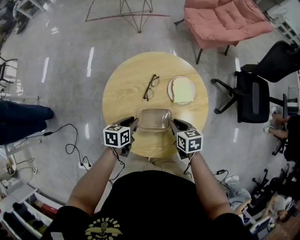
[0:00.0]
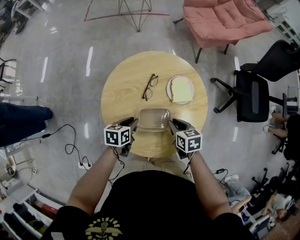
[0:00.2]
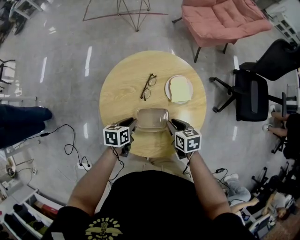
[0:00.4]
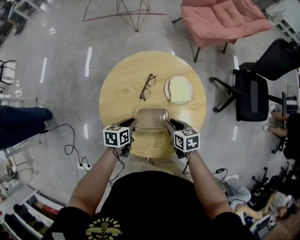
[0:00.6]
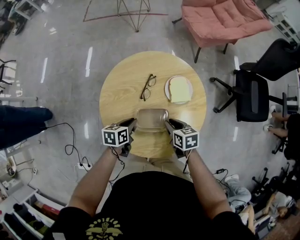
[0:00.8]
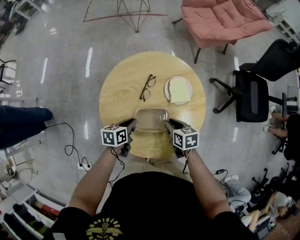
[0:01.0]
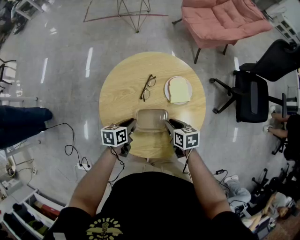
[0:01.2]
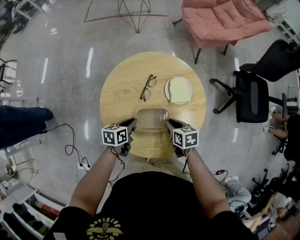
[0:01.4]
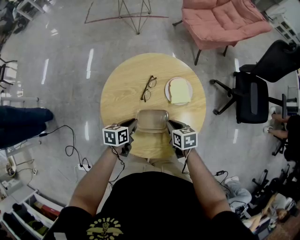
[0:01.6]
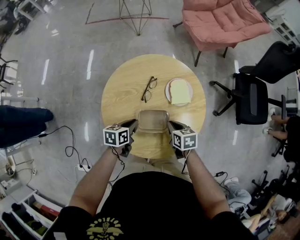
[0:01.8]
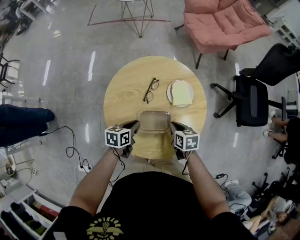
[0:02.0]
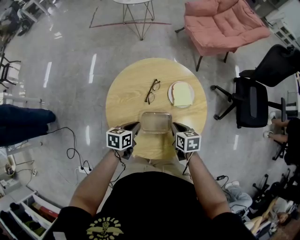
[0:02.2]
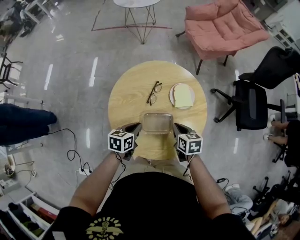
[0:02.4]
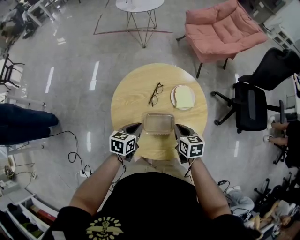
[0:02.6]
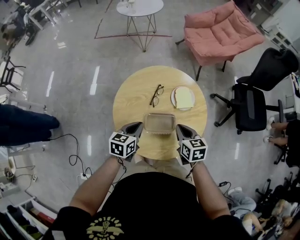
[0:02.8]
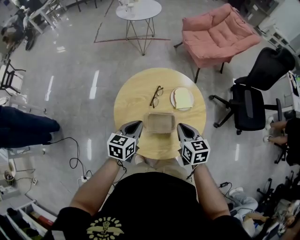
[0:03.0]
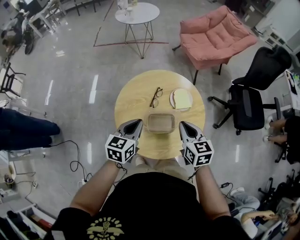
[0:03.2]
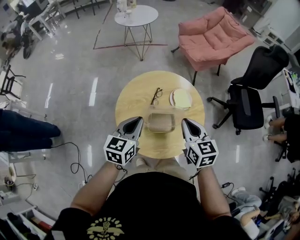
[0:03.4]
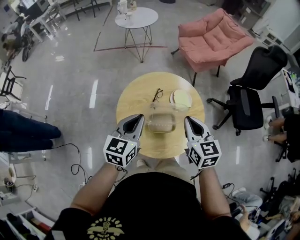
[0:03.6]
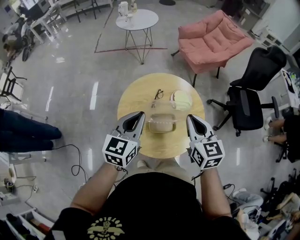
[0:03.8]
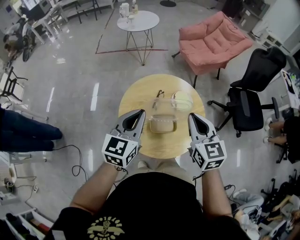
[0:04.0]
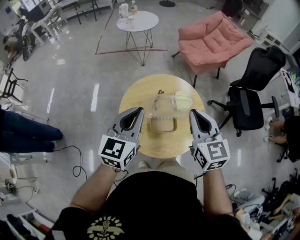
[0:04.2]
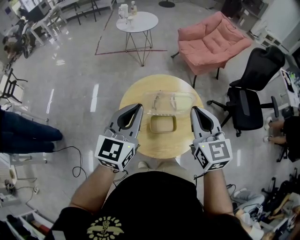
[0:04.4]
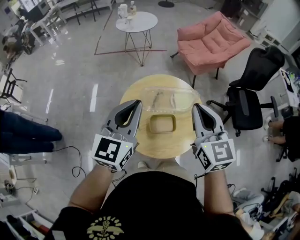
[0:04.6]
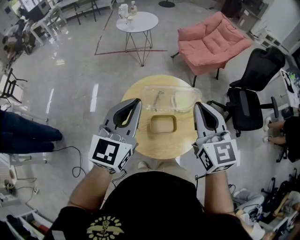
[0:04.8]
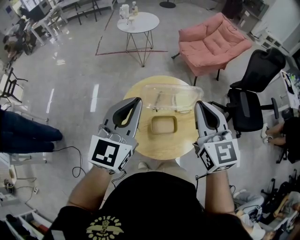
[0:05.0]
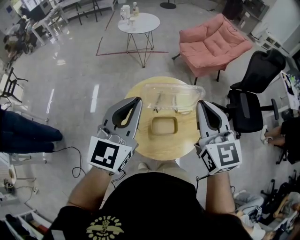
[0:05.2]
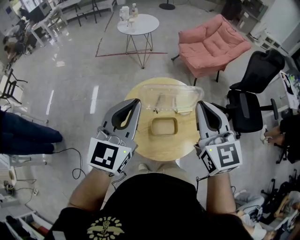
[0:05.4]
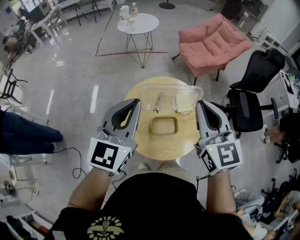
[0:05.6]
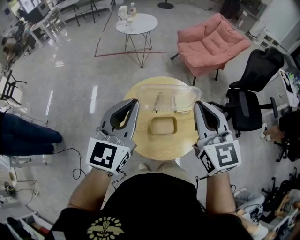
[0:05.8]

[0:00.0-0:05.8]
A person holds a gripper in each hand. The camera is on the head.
0:00.0 to 0:01.4: The grippers move only a little.
0:01.4 to 0:02.8: The two grippers go roughly 10 cm upward. The left gripper swivels approximately 20 degrees.
0:02.8 to 0:04.4: The grippers both shift upward by roughly 30 cm. The left gripper changes its angle by approximately 40 degrees; the right gripper changes its angle by approximately 30 degrees.
0:04.4 to 0:05.8: The two grippers go about 5 cm upward.

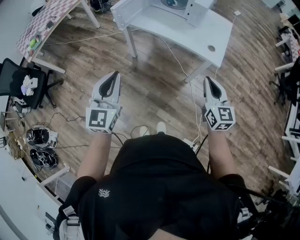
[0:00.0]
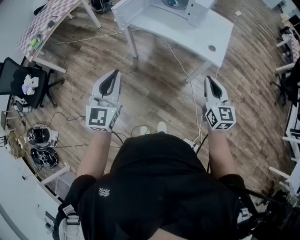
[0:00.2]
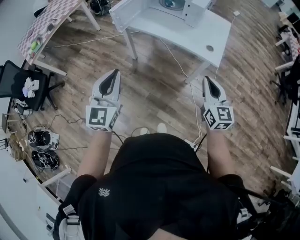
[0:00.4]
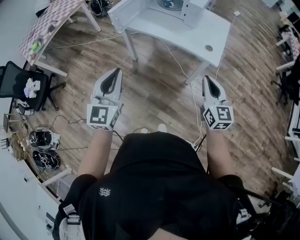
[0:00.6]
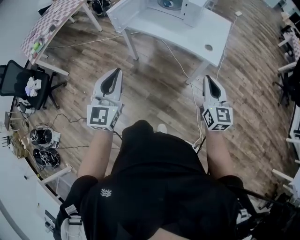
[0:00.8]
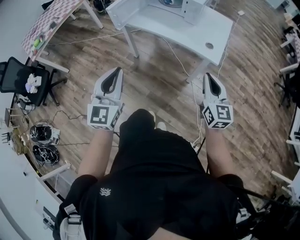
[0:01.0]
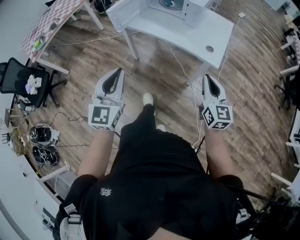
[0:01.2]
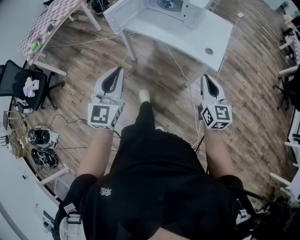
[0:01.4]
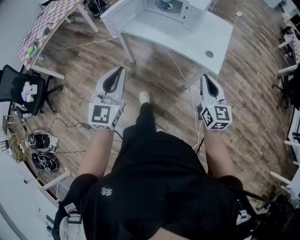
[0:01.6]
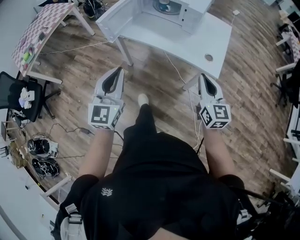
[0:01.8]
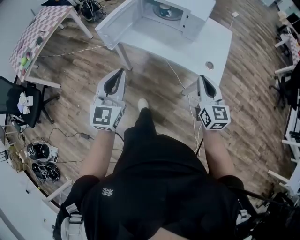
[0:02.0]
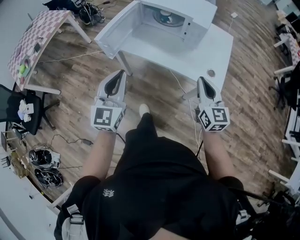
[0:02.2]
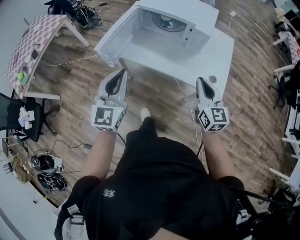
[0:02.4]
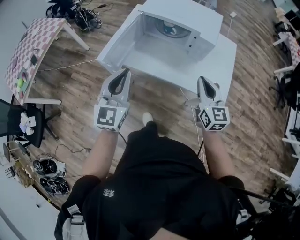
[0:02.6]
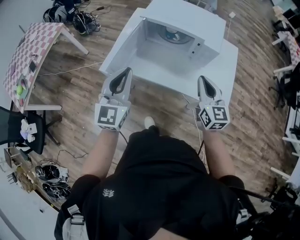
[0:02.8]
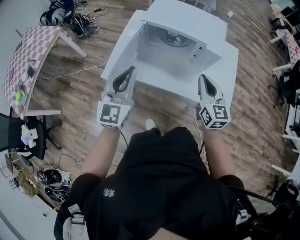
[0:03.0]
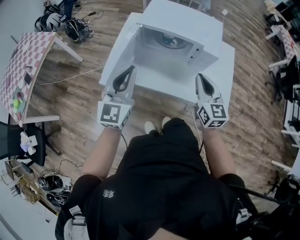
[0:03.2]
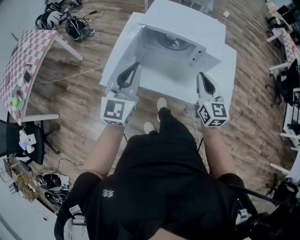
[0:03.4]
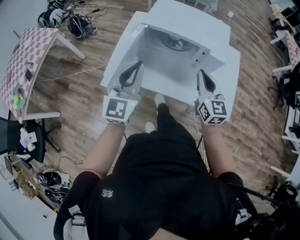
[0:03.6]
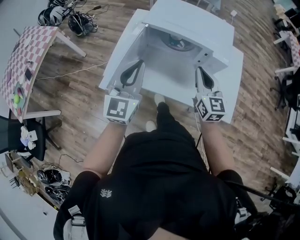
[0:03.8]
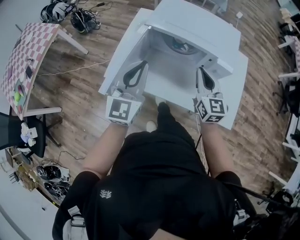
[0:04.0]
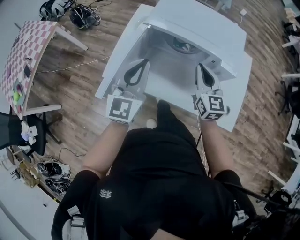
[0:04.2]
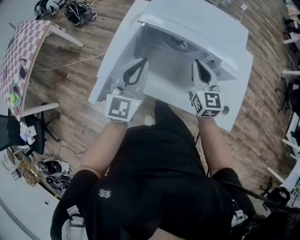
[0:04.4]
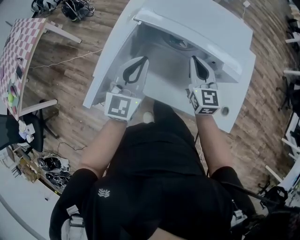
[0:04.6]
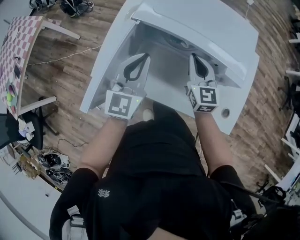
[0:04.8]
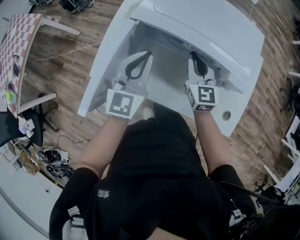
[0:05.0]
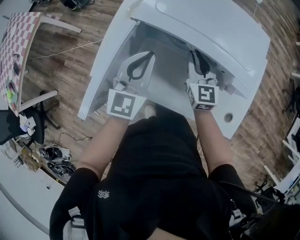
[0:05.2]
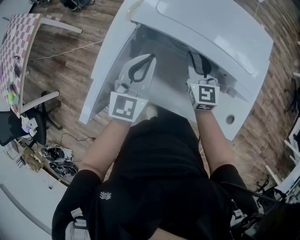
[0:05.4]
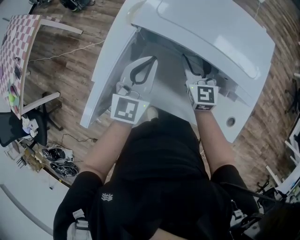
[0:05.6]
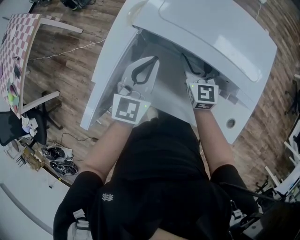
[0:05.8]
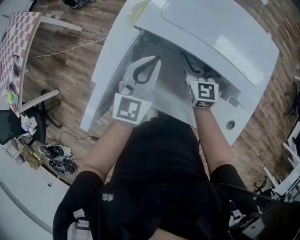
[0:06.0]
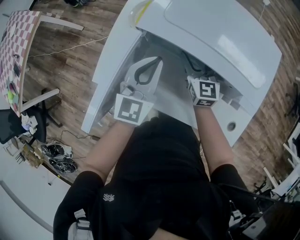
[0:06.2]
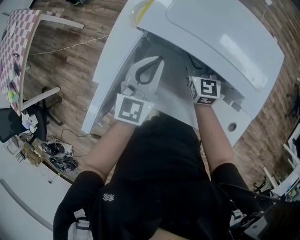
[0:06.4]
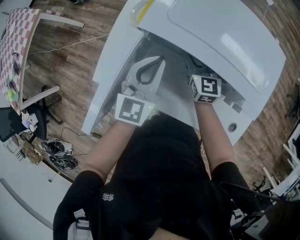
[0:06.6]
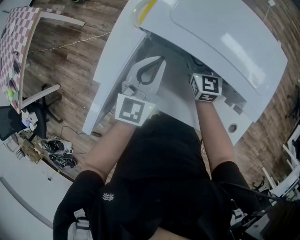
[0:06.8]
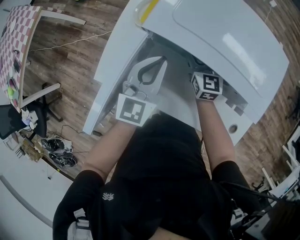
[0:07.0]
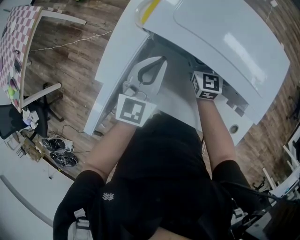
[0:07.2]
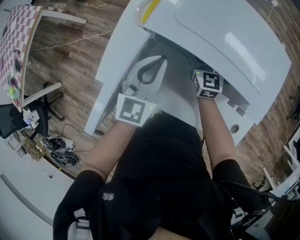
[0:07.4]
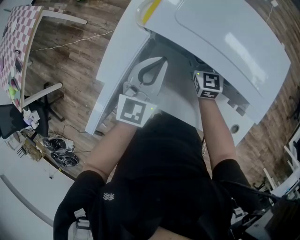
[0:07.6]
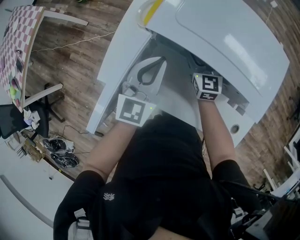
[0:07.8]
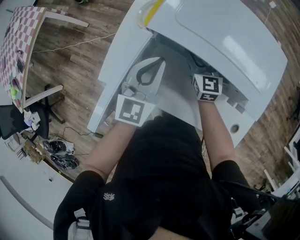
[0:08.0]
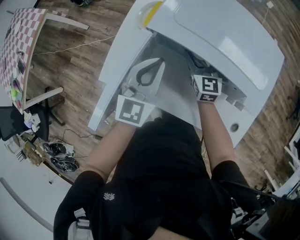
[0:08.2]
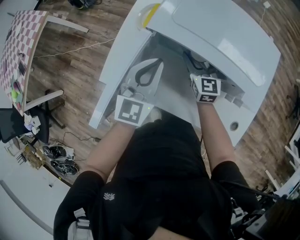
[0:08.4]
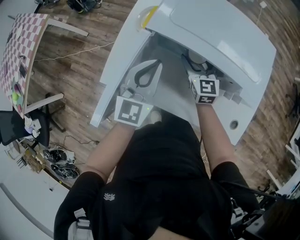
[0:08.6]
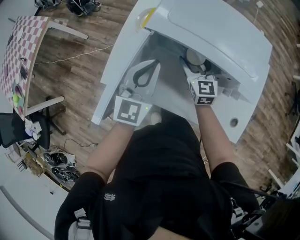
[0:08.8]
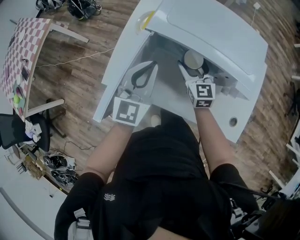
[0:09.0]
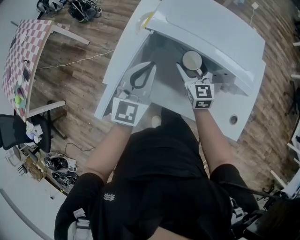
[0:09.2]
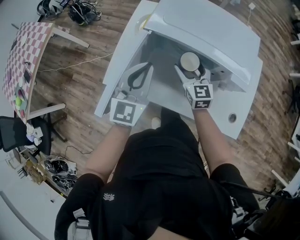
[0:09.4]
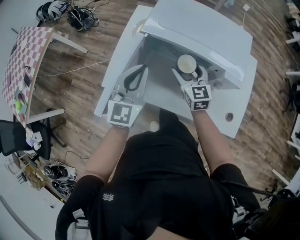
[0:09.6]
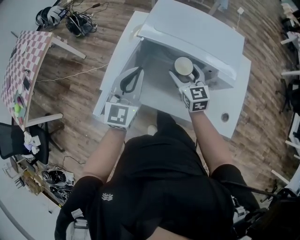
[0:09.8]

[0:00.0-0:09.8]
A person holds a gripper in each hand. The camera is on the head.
0:00.0 to 0:01.4: Both grippers travel together to the right, approximately 5 cm.
0:01.4 to 0:02.8: The grippers both shift forward by some 40 cm.
0:02.8 to 0:04.2: The grippers both shift forward by about 20 cm.
0:04.2 to 0:05.6: The two grippers go roughly 20 cm forward and downward. The right gripper opens its fingers.
0:05.6 to 0:07.0: The right gripper heads forward, covering about 5 cm.
0:07.0 to 0:08.4: The grippers stay close to where they were, moving slightly.
0:08.4 to 0:09.8: The grippers both shift backward and upward by some 15 cm.

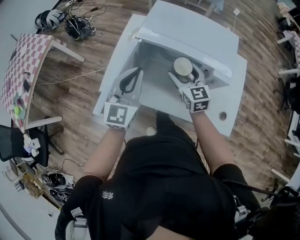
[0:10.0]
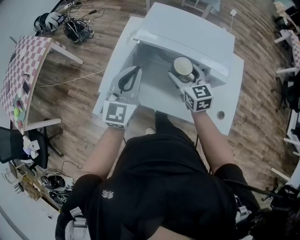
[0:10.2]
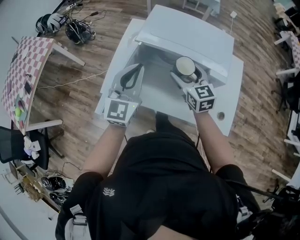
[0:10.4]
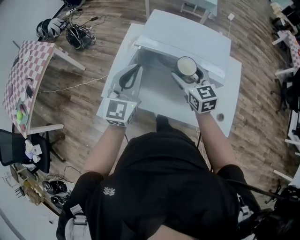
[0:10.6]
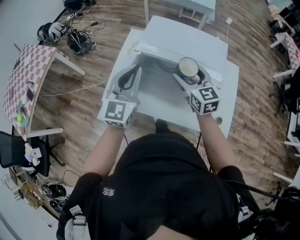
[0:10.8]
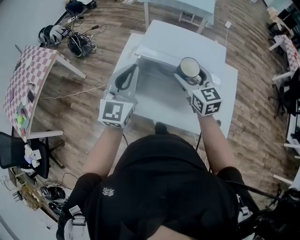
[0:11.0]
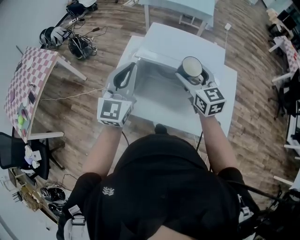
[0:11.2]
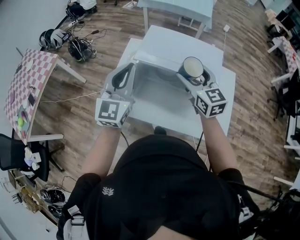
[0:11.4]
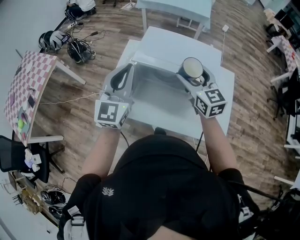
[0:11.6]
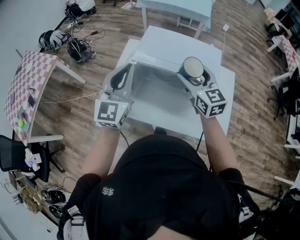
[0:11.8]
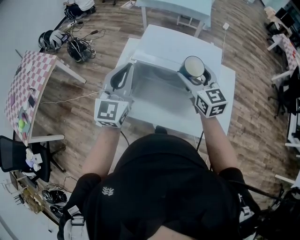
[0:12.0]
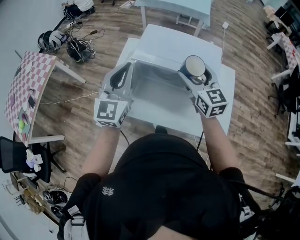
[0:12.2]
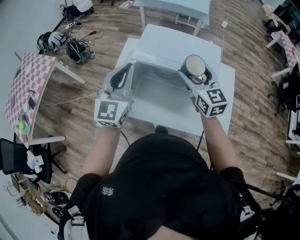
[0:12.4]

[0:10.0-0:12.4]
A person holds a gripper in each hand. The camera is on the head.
0:10.0 to 0:11.2: The grippers both shift upward by approximately 15 cm.
0:11.2 to 0:12.4: The grippers stay close to where they were, moving slightly.

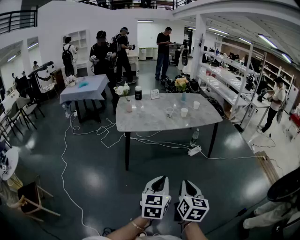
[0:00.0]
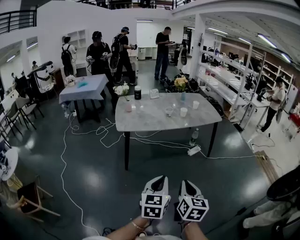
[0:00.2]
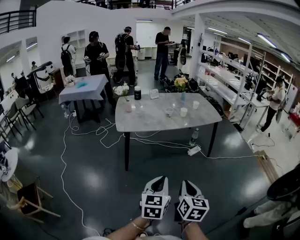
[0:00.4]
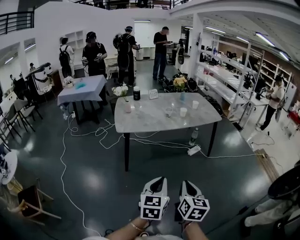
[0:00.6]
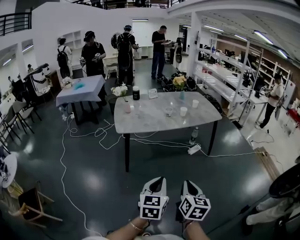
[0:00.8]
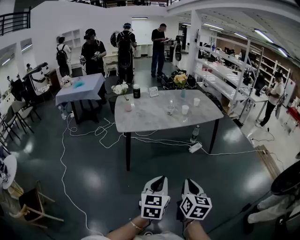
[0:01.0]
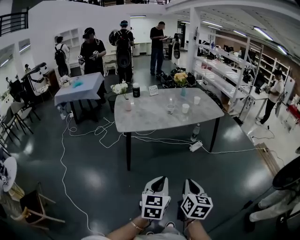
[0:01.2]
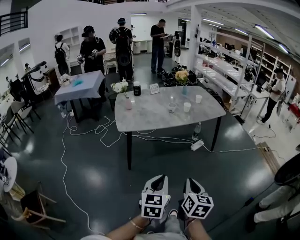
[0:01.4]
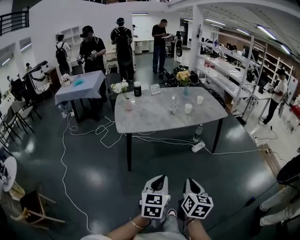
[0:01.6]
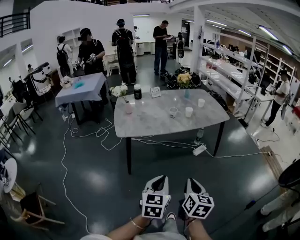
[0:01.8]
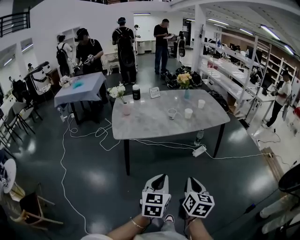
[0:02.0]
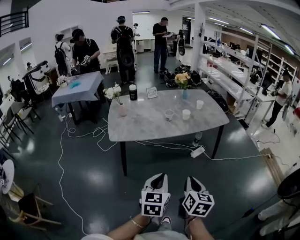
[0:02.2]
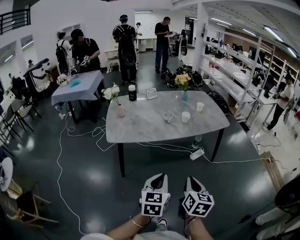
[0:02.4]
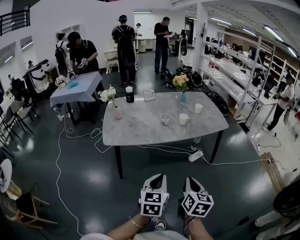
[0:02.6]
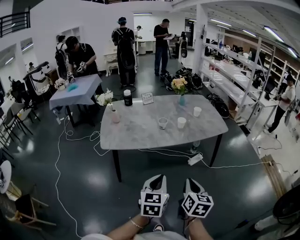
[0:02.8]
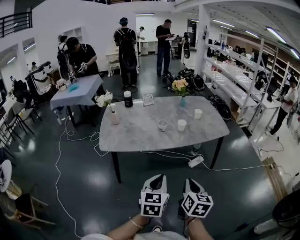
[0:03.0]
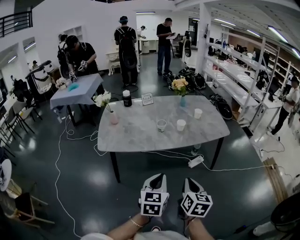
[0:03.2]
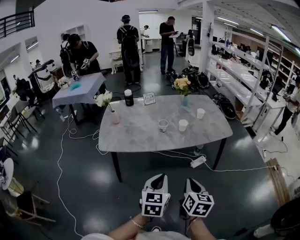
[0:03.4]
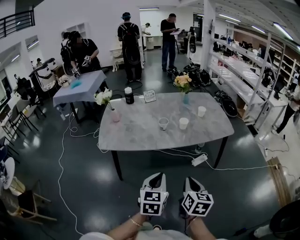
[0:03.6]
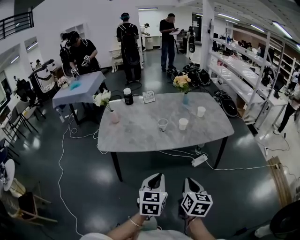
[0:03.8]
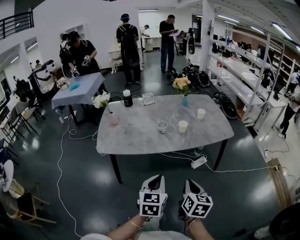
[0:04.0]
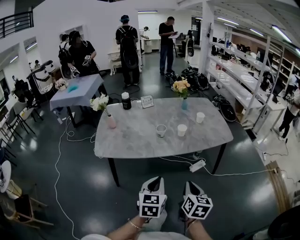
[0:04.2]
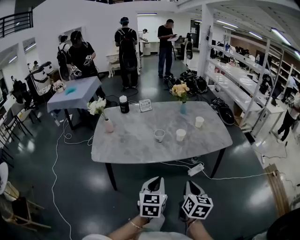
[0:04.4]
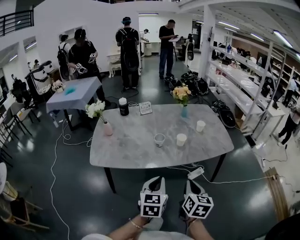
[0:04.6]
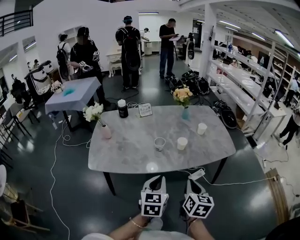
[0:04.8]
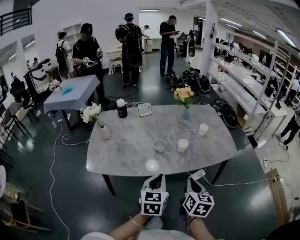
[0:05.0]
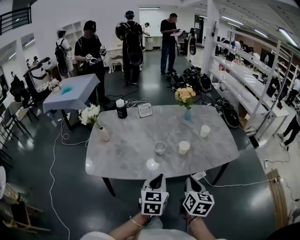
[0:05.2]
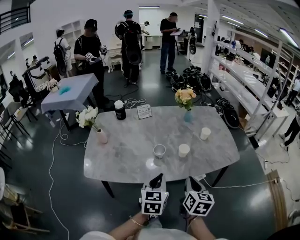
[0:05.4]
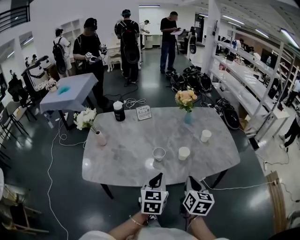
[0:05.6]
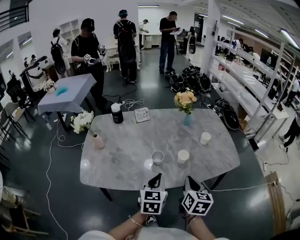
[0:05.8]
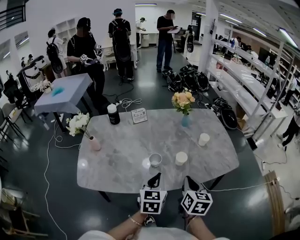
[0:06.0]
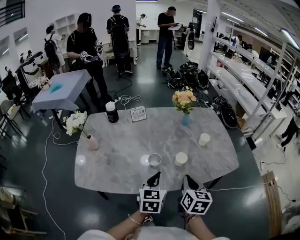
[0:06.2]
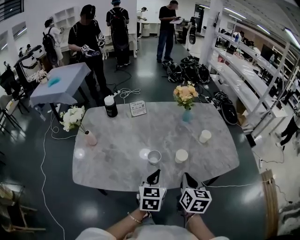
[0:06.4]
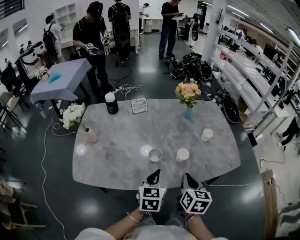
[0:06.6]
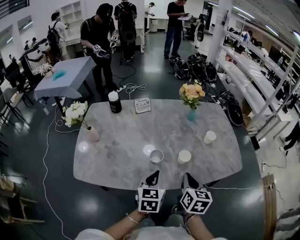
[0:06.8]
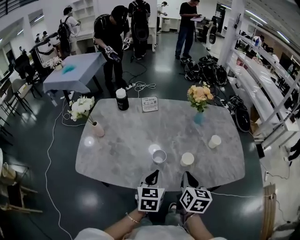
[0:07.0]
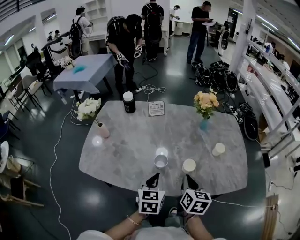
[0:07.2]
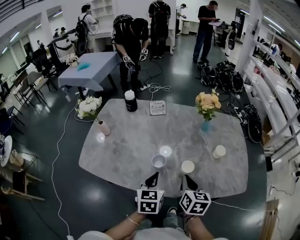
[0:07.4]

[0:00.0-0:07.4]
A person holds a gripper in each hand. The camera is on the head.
0:00.0 to 0:01.4: The left gripper goes some 5 cm to the left. The right gripper shifts by about 5 cm.
0:01.4 to 0:03.0: The two grippers go approximately 30 cm forward and to the right.
0:03.0 to 0:04.4: Both grippers travel together forward, about 10 cm.
0:04.4 to 0:06.0: Both grippers travel together forward, roughly 25 cm.
0:06.0 to 0:07.4: The right gripper goes about 10 cm forward. Meanwhile the left gripper shifts roughly 5 cm forward.
